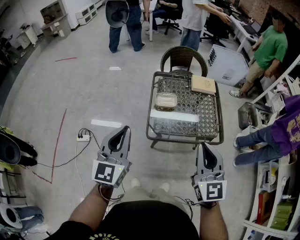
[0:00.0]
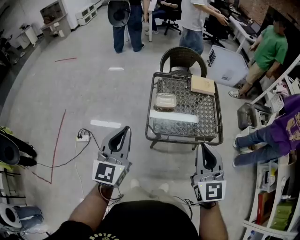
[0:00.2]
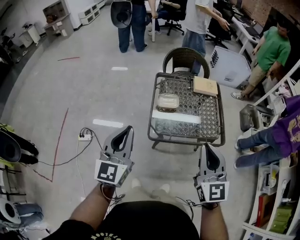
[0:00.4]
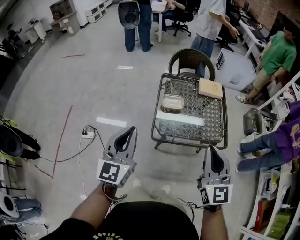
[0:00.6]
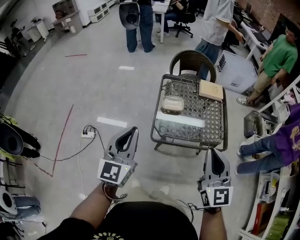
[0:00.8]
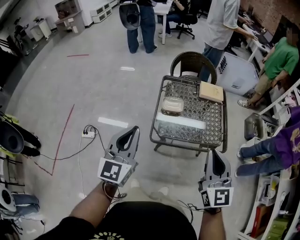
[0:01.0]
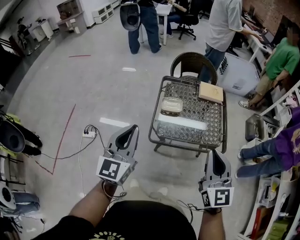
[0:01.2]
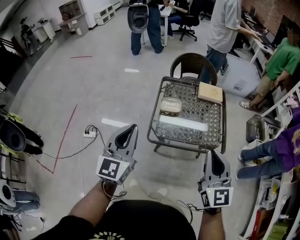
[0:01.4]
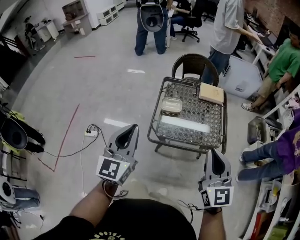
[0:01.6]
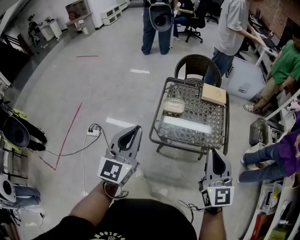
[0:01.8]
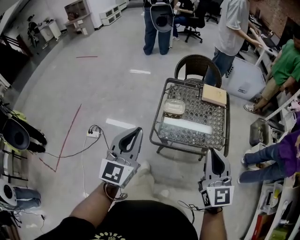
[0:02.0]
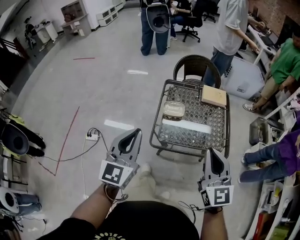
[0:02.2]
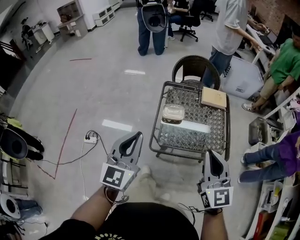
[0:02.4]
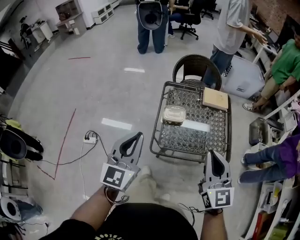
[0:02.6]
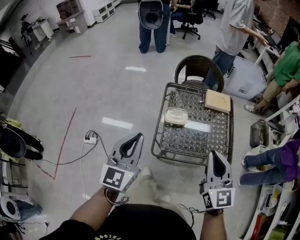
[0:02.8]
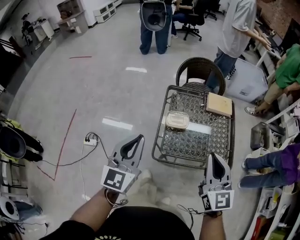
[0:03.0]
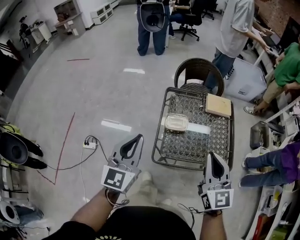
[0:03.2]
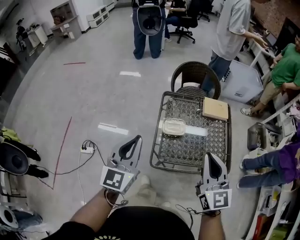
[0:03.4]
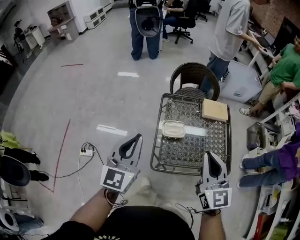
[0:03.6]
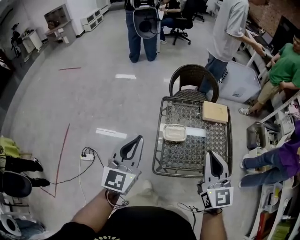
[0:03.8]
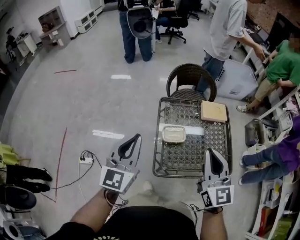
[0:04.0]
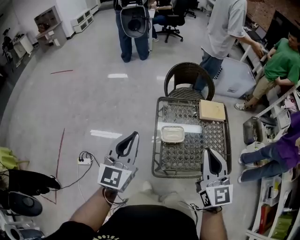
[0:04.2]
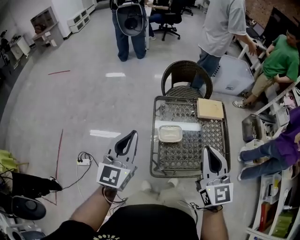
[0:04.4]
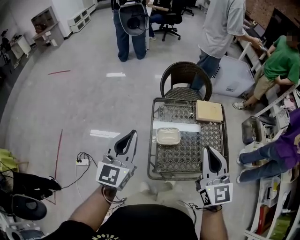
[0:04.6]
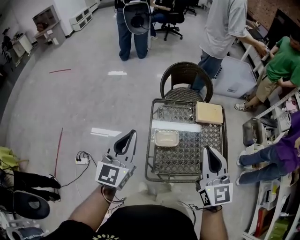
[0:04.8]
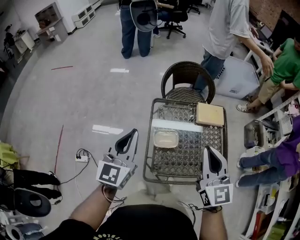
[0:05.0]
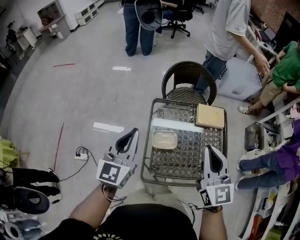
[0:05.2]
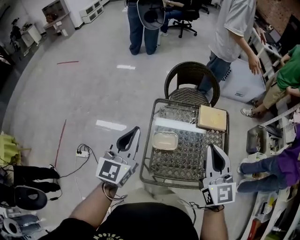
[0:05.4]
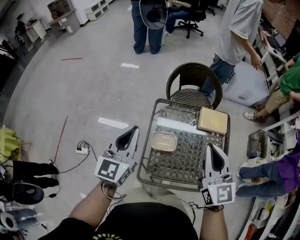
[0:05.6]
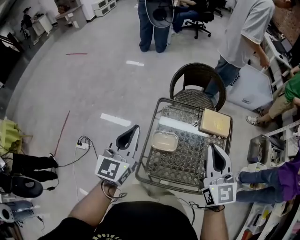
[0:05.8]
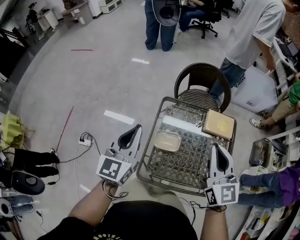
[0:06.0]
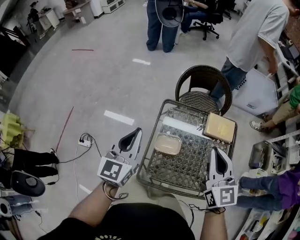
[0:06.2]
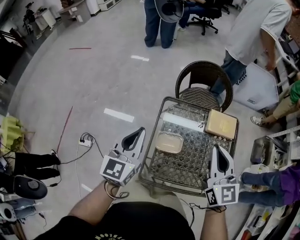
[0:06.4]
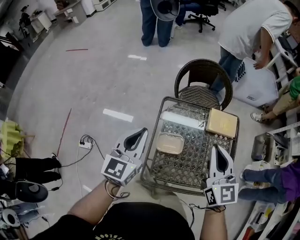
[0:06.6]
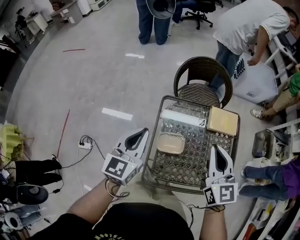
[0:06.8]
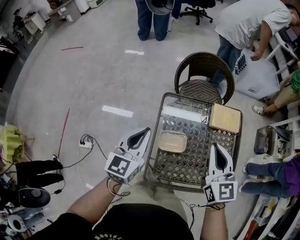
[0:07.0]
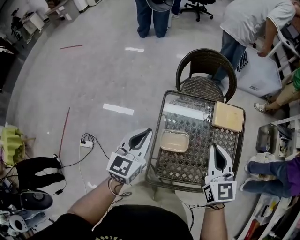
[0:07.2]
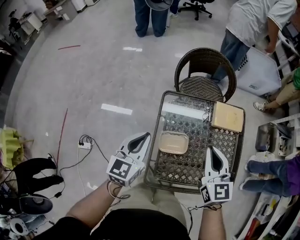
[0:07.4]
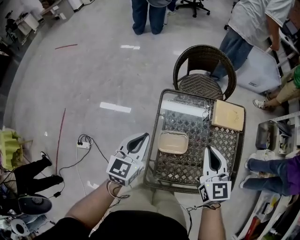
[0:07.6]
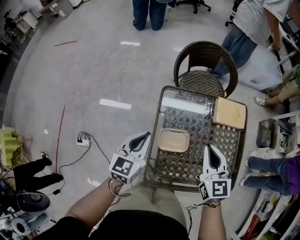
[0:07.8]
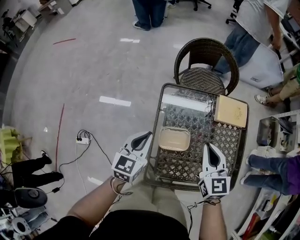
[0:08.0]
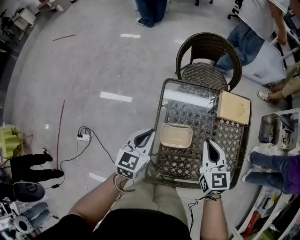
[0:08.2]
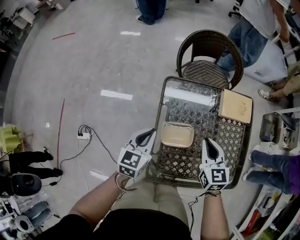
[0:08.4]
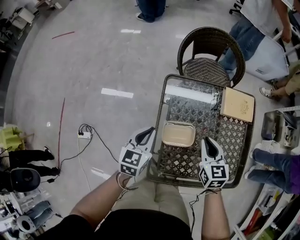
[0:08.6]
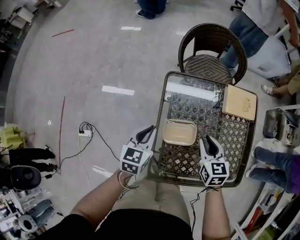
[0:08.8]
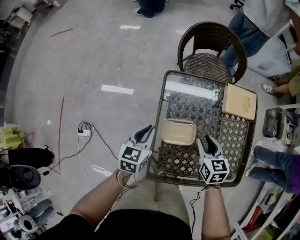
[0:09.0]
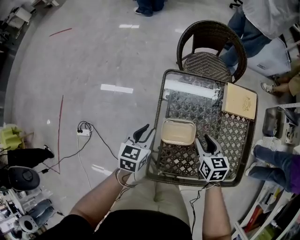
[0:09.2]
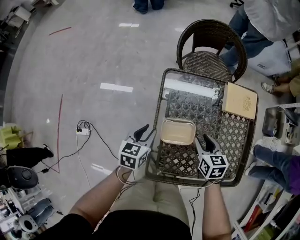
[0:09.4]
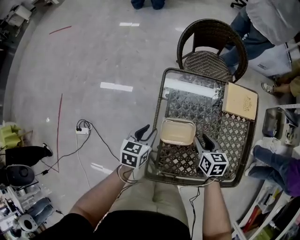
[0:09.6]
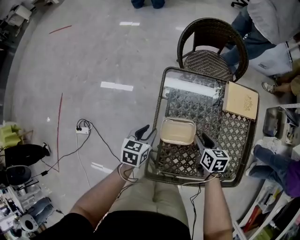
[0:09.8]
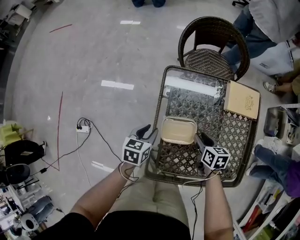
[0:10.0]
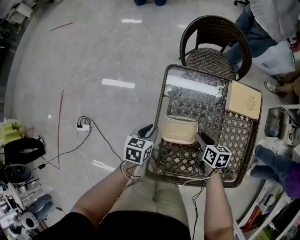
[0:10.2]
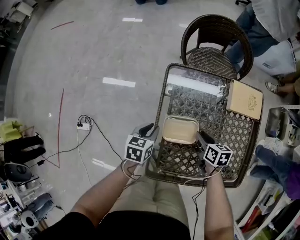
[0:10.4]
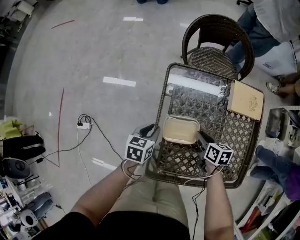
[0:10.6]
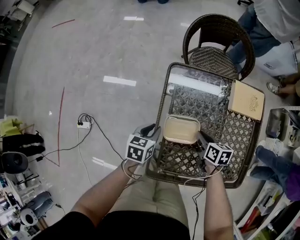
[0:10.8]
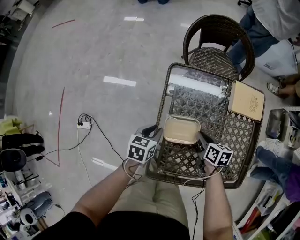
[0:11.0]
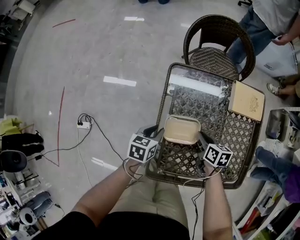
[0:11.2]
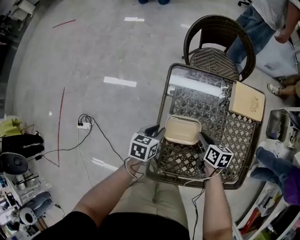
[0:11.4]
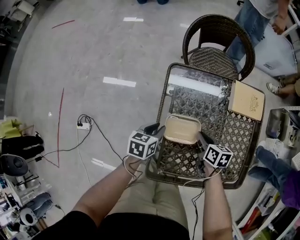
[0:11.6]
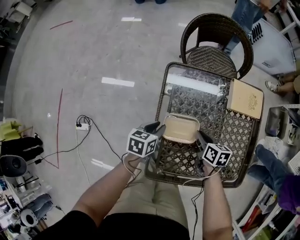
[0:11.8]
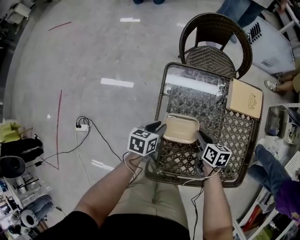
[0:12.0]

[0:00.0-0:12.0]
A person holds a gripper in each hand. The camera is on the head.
0:00.0 to 0:01.6: The grippers both shift to the right by about 10 cm.
0:01.6 to 0:03.0: The left gripper shifts about 15 cm forward, while the right gripper is displaced forward and to the left by some 15 cm.
0:03.0 to 0:04.4: Both grippers travel together forward, approximately 15 cm.
0:04.4 to 0:06.0: The grippers both shift forward and to the right by approximately 15 cm.
0:06.0 to 0:07.6: Both grippers travel together downward, approximately 15 cm. The left gripper changes its angle by approximately 20 degrees.
0:07.6 to 0:09.0: Both grippers travel together downward, about 15 cm. The right gripper swivels about 20 degrees, and opens.
0:09.0 to 0:10.4: Both grippers travel together downward, some 10 cm. The right gripper swivels about 20 degrees.
0:10.4 to 0:12.0: The grippers move only a little.

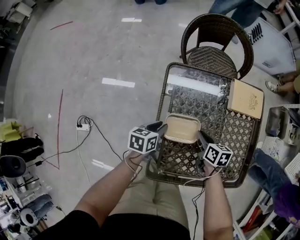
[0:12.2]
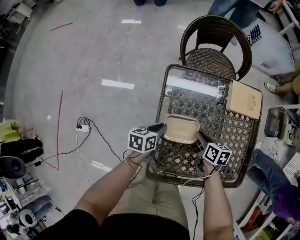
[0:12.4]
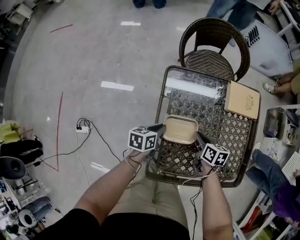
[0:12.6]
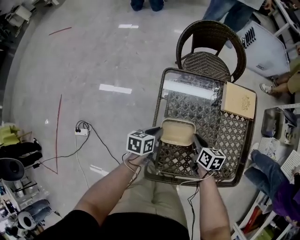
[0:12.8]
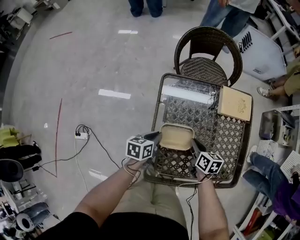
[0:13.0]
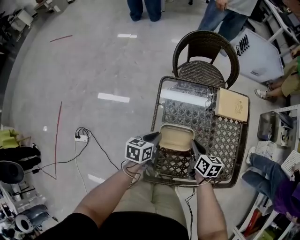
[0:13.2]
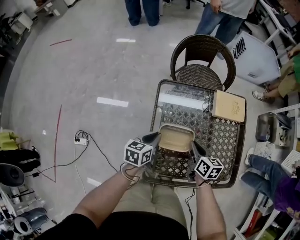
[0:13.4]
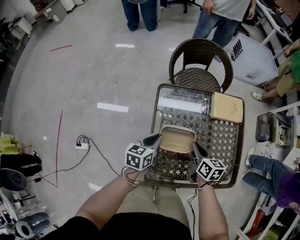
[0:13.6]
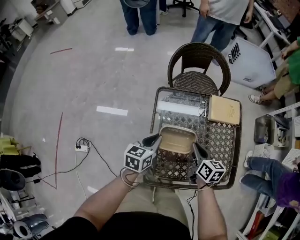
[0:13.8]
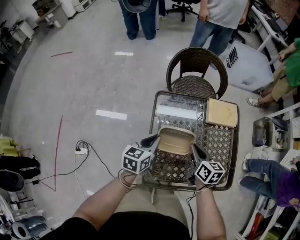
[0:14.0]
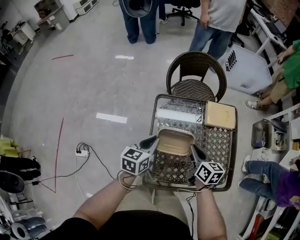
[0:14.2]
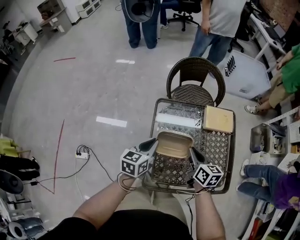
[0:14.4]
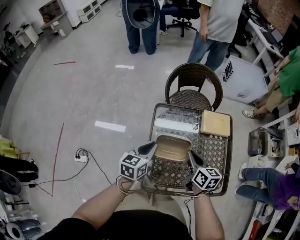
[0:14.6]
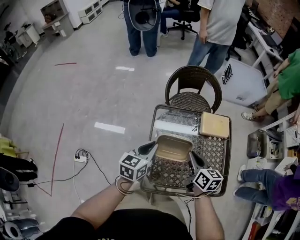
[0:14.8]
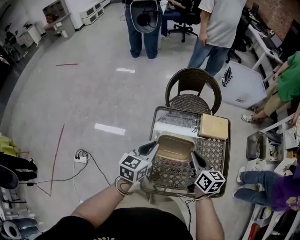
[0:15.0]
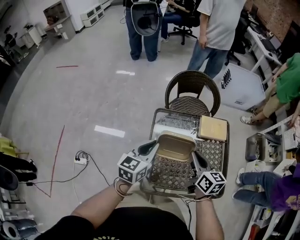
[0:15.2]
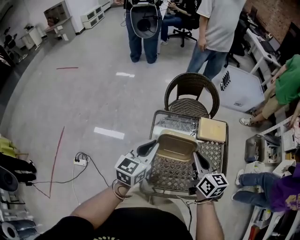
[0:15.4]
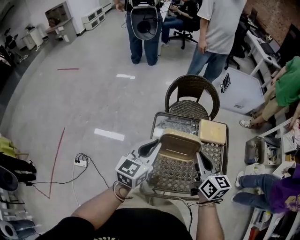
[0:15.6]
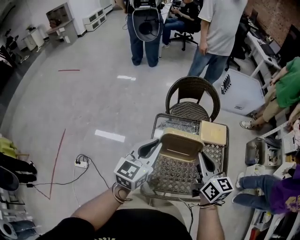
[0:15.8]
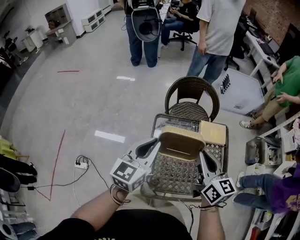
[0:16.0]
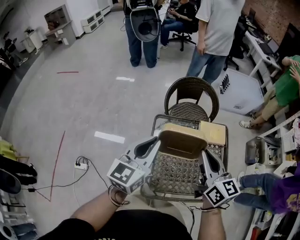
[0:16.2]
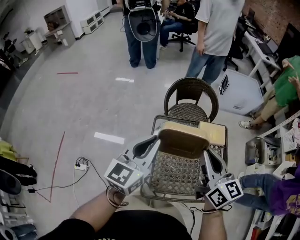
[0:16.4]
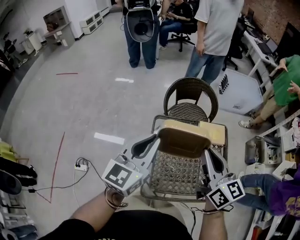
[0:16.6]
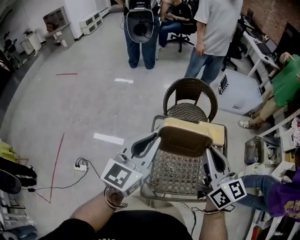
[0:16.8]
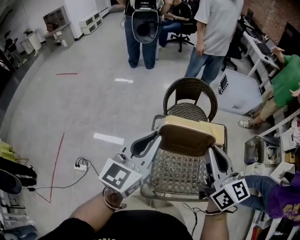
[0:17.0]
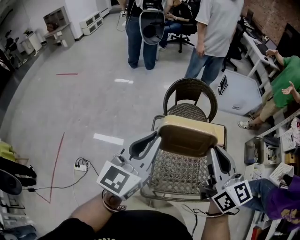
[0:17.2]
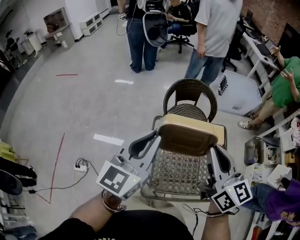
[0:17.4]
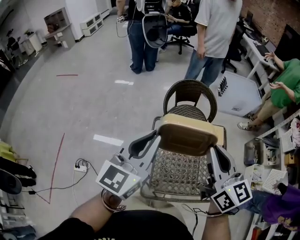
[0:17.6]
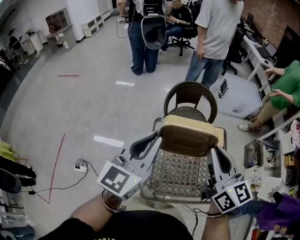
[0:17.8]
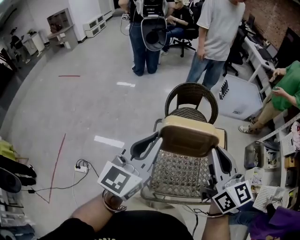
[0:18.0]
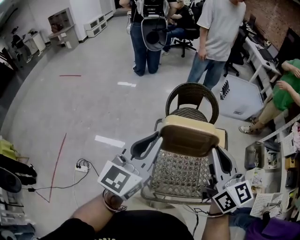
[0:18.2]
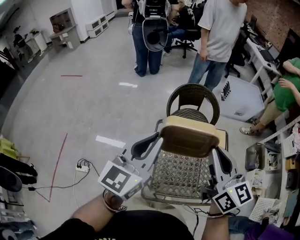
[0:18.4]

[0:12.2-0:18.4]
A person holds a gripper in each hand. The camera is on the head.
0:12.2 to 0:13.8: Both grippers travel together upward, about 15 cm.
0:13.8 to 0:15.4: The grippers both shift upward by roughly 20 cm. The left gripper rotates roughly 20 degrees.
0:15.4 to 0:16.8: Both grippers move upward, roughly 15 cm.
0:16.8 to 0:18.4: The grippers both shift upward by roughly 5 cm.

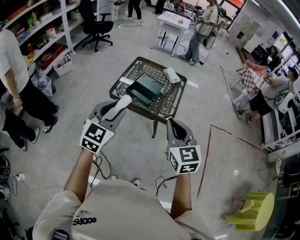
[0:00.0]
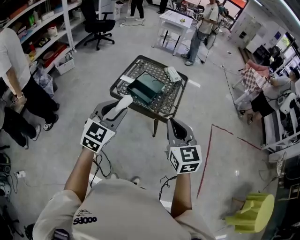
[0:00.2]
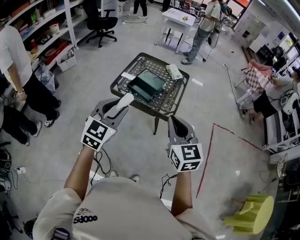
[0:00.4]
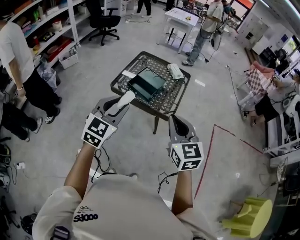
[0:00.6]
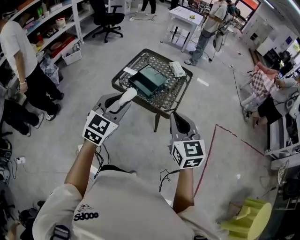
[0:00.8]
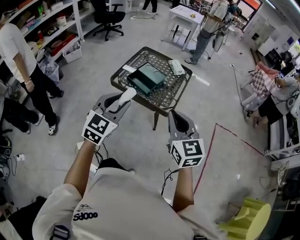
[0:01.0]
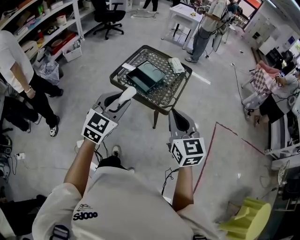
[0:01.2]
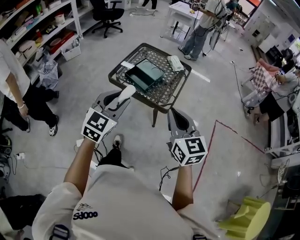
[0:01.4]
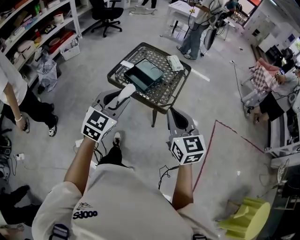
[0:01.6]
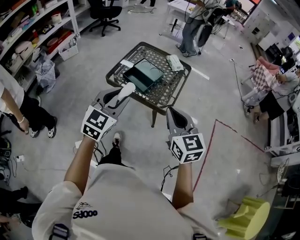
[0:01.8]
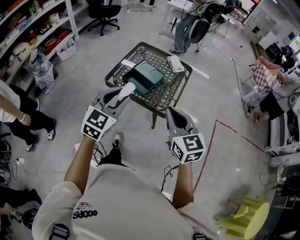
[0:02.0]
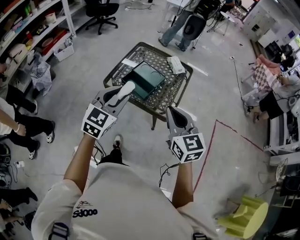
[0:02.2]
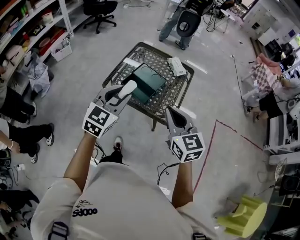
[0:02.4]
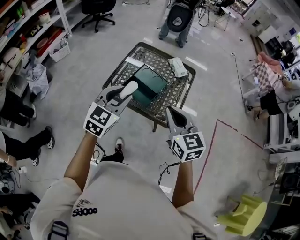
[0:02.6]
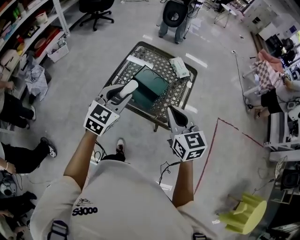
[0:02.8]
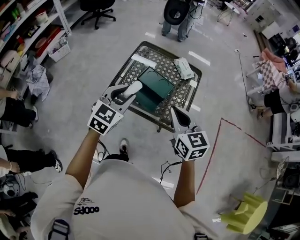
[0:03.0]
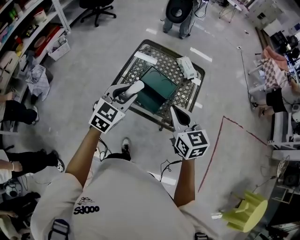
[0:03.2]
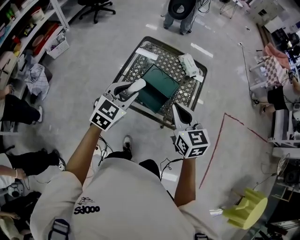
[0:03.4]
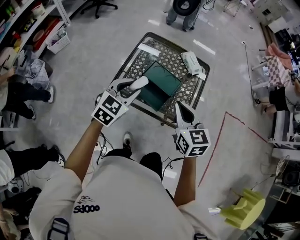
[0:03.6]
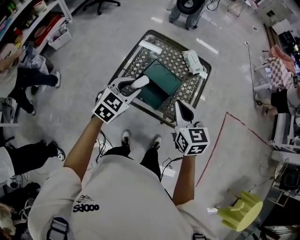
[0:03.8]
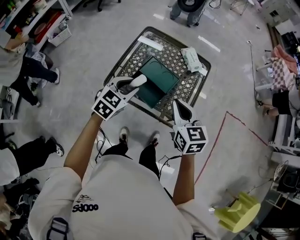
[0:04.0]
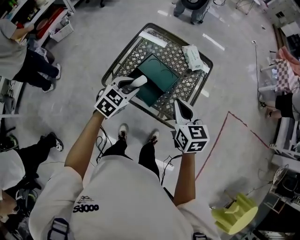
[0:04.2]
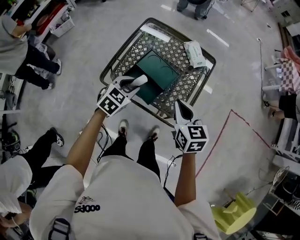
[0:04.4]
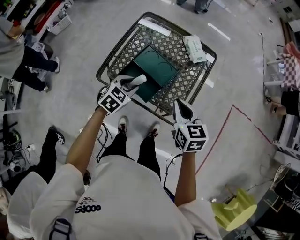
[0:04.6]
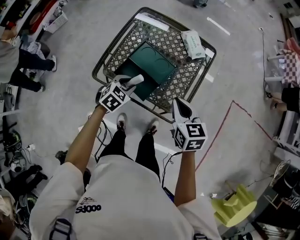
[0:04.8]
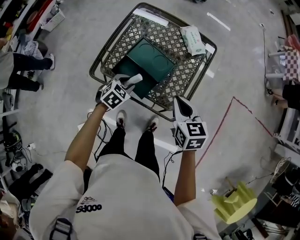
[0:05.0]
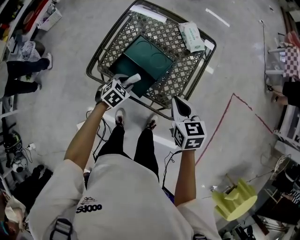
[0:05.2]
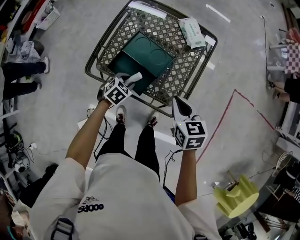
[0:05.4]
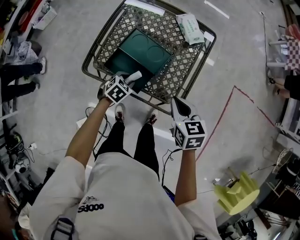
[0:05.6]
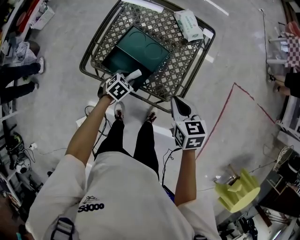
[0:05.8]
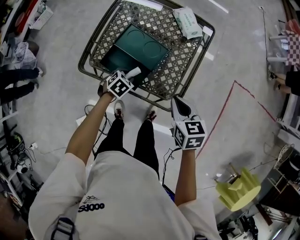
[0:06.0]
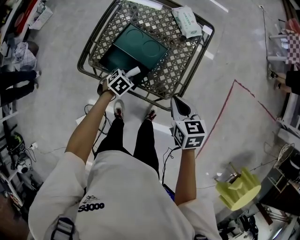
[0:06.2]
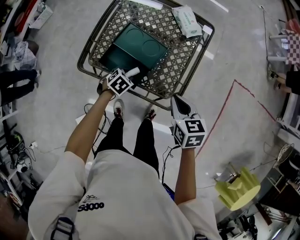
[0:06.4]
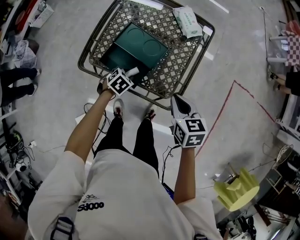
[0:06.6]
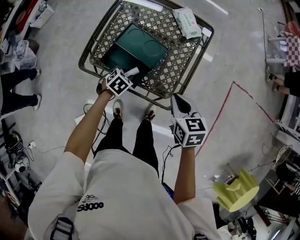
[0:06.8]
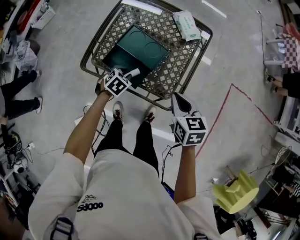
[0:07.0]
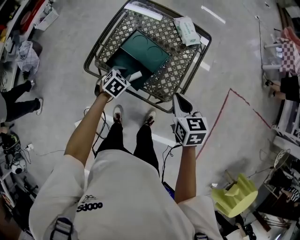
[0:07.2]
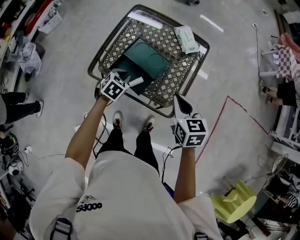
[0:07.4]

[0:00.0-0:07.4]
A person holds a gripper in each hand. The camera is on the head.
0:00.0 to 0:01.4: Both grippers move to the right, approximately 10 cm.
0:01.4 to 0:03.0: Both grippers move forward, some 25 cm.
0:03.0 to 0:04.4: The left gripper shifts approximately 20 cm downward and forward, and swivels some 20 degrees. Meanwhile the right gripper is displaced downward, forward and to the right by roughly 15 cm.
0:04.4 to 0:06.0: The right gripper heads downward and to the right, covering some 10 cm. Meanwhile the left gripper travels downward by approximately 20 cm, and rotates approximately 30 degrees.
0:06.0 to 0:07.4: Both grippers move upward, approximately 10 cm.
